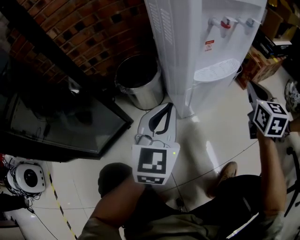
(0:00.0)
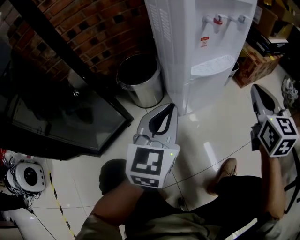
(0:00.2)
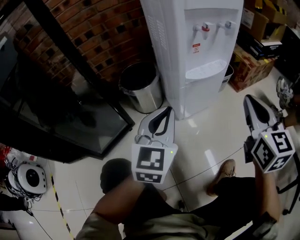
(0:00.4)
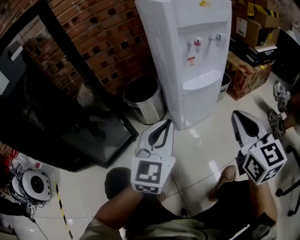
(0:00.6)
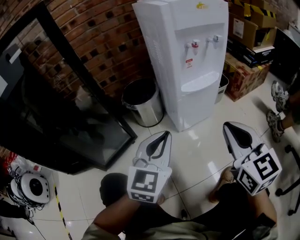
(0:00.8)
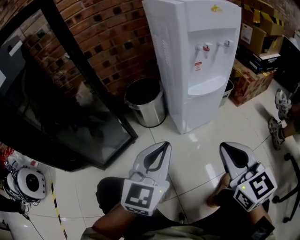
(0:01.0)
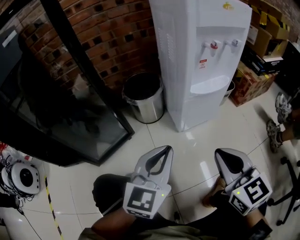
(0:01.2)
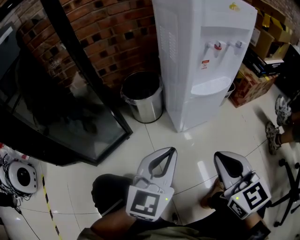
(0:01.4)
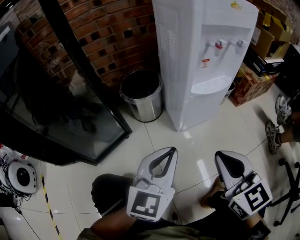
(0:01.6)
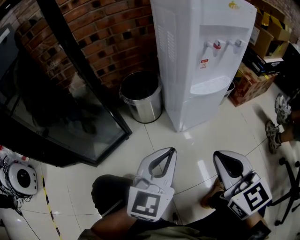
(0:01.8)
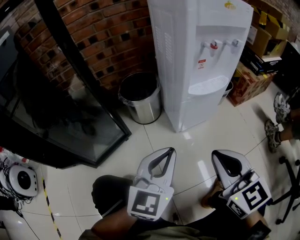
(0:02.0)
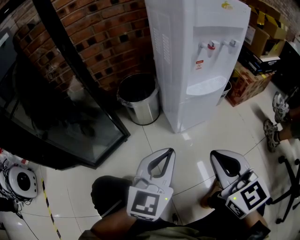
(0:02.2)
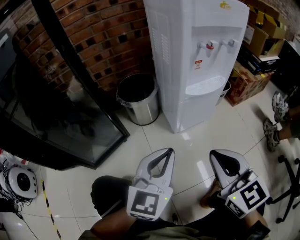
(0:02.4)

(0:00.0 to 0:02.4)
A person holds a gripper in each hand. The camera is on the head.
0:00.0 - 0:01.2: The left gripper is displaced backward by roughly 15 cm, while the right gripper shifts roughly 30 cm backward and to the left, and rotates approximately 30 degrees.
0:01.2 - 0:02.4: The grippers stay close to where they were, moving slightly.

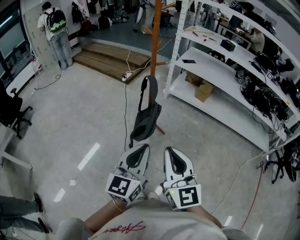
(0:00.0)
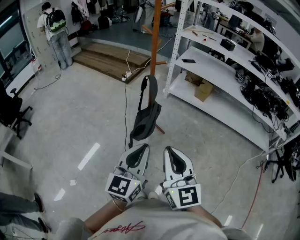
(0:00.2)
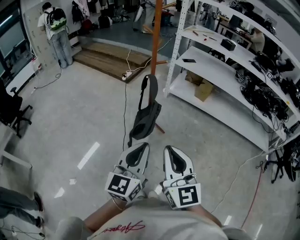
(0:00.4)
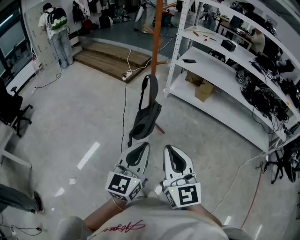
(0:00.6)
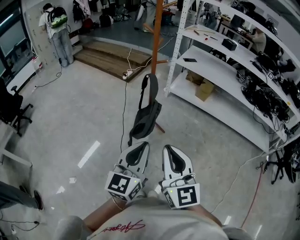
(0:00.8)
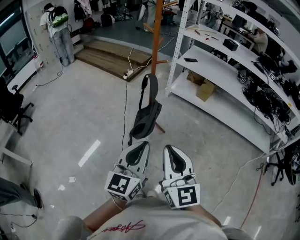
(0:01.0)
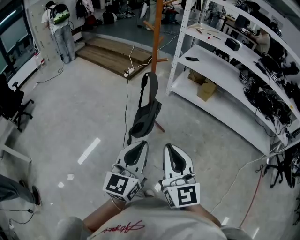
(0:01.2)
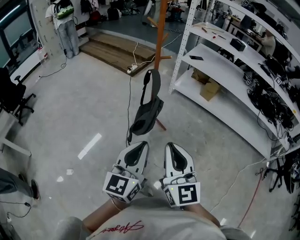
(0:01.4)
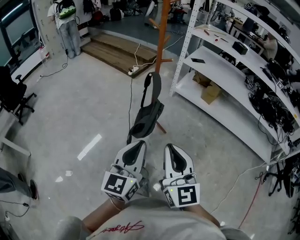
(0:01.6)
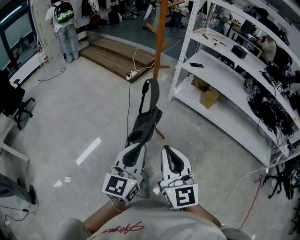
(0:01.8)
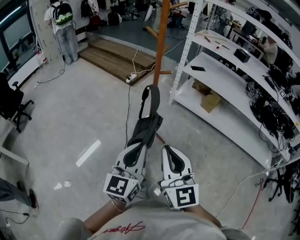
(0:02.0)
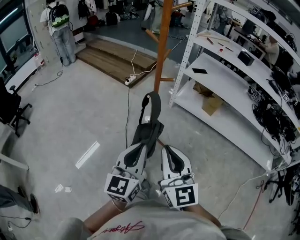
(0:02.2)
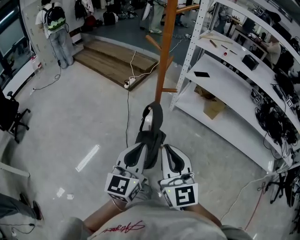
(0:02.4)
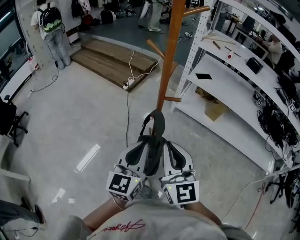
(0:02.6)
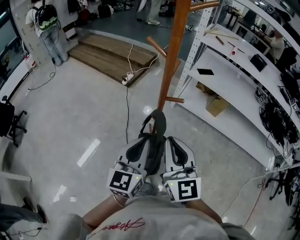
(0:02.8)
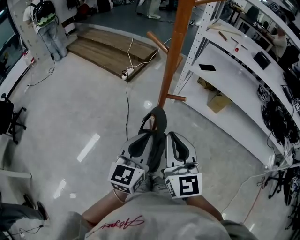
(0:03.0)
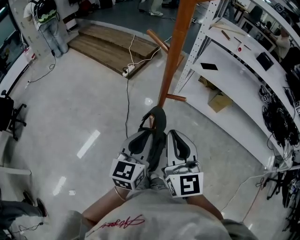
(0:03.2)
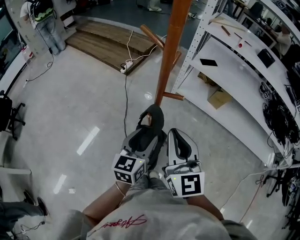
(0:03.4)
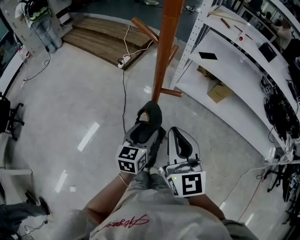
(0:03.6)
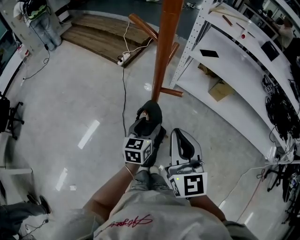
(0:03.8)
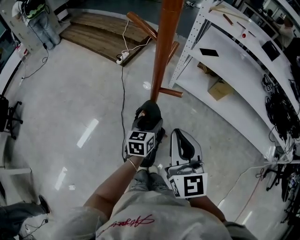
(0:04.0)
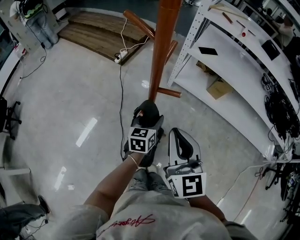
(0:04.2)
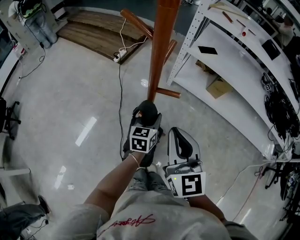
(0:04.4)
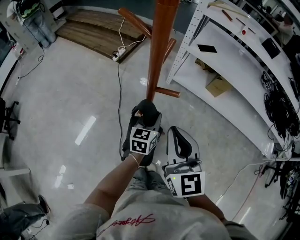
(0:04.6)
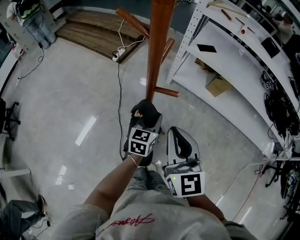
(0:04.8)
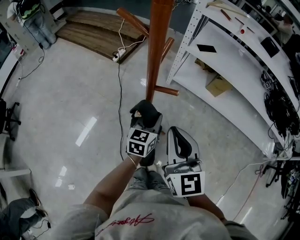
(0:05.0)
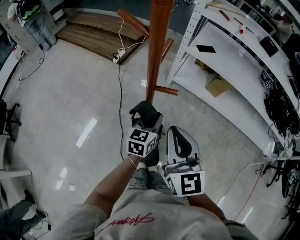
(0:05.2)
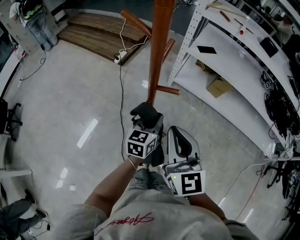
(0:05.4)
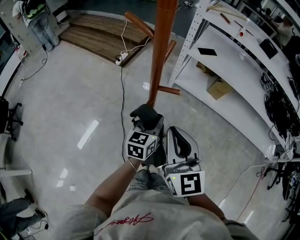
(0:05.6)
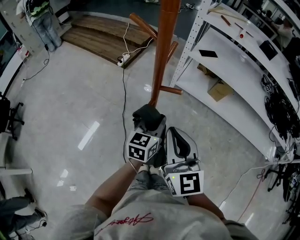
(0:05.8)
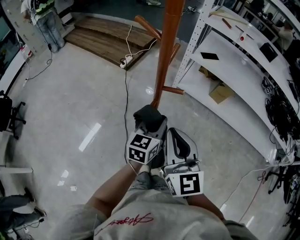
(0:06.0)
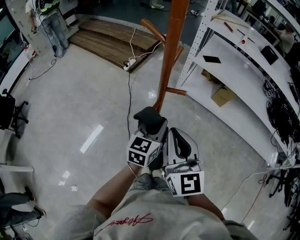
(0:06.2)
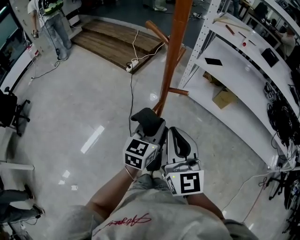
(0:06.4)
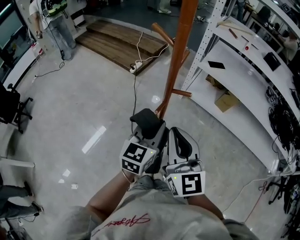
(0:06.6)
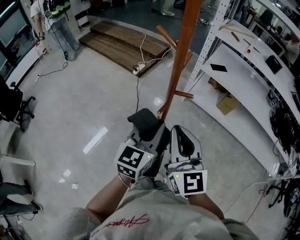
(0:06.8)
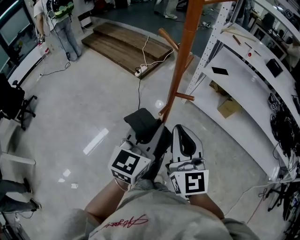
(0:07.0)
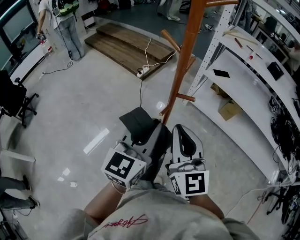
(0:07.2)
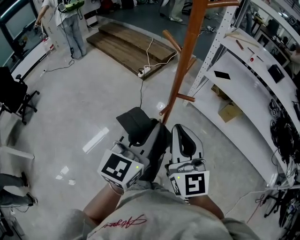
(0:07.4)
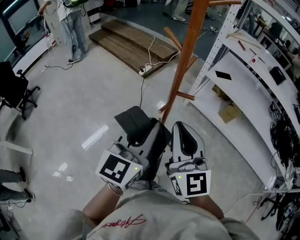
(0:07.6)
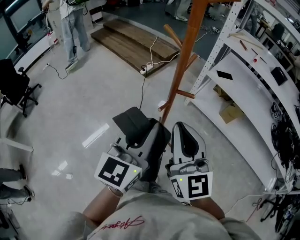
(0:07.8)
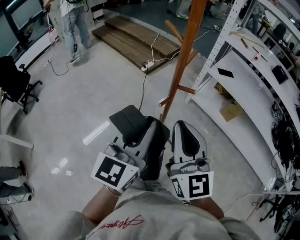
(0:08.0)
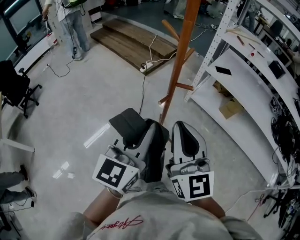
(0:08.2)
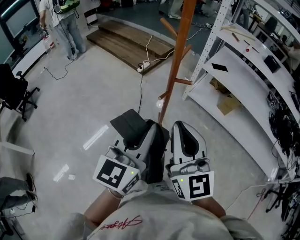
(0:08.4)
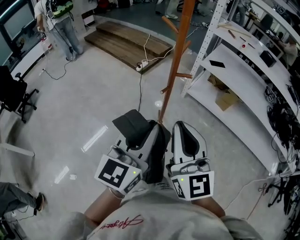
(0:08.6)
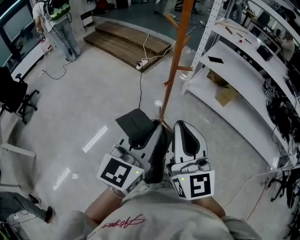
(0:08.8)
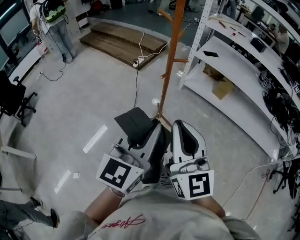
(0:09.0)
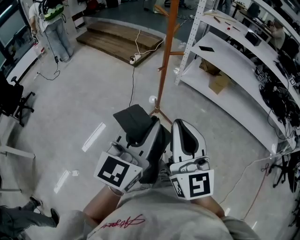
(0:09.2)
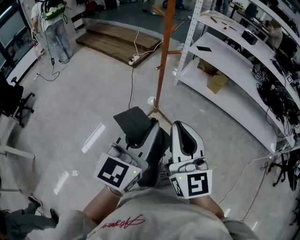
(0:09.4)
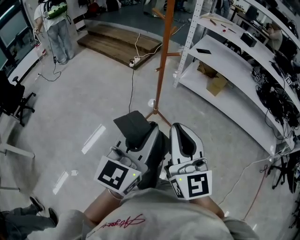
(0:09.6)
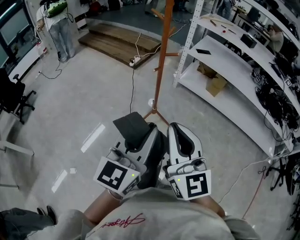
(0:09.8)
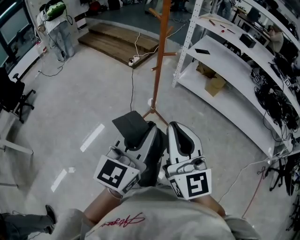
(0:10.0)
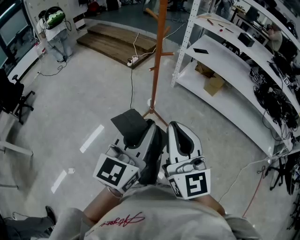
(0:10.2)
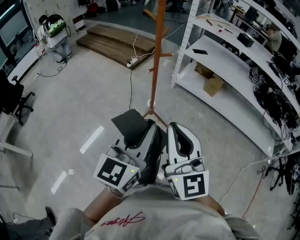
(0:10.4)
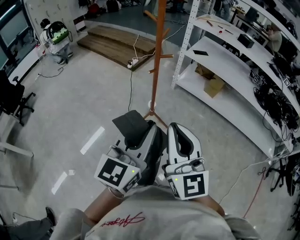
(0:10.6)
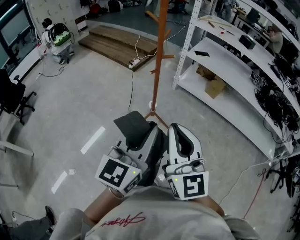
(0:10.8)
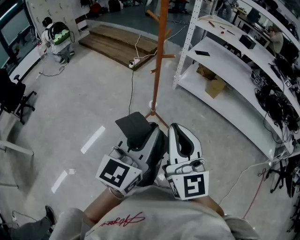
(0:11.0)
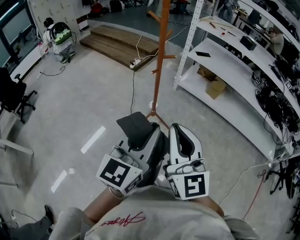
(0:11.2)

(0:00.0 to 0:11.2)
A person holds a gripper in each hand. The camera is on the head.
0:00.0 - 0:01.6: The grippers stay close to where they were, moving slightly.
0:01.6 - 0:03.2: Both grippers travel together forward, roughly 35 cm.
0:03.2 - 0:04.8: The left gripper goes about 20 cm downward, forward and to the right, and opens, then closes again. The right gripper changes place by about 5 cm.
0:04.8 - 0:06.4: The left gripper goes about 15 cm upward and backward. Meanwhile the right gripper changes place by roughly 5 cm.
0:06.4 - 0:08.0: The right gripper heads upward, covering roughly 5 cm. The left gripper shifts roughly 20 cm upward and backward, and rotates roughly 20 degrees.
0:08.0 - 0:09.6: Both grippers move backward, approximately 25 cm.
0:09.6 - 0:11.2: The grippers make only small movements.

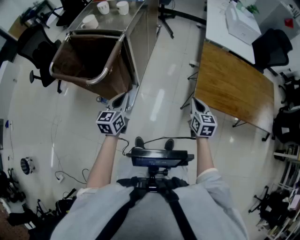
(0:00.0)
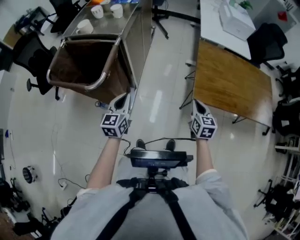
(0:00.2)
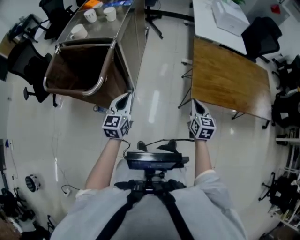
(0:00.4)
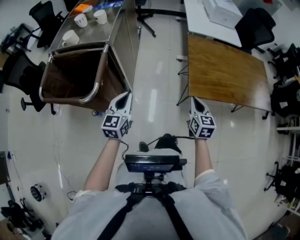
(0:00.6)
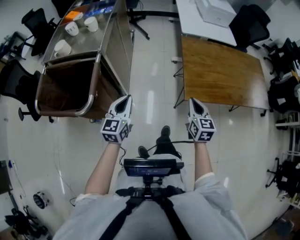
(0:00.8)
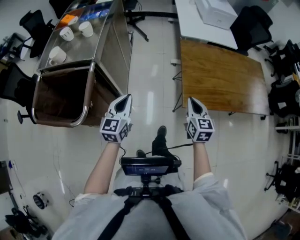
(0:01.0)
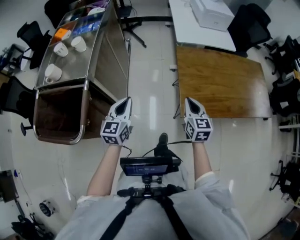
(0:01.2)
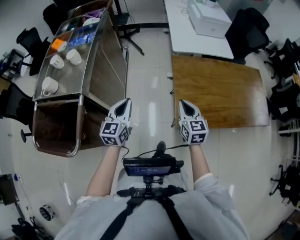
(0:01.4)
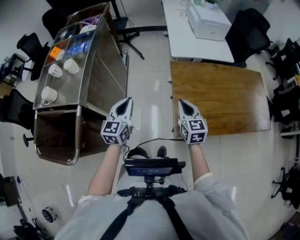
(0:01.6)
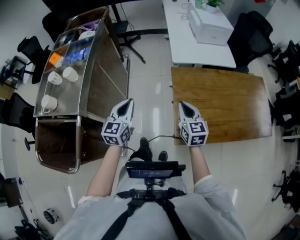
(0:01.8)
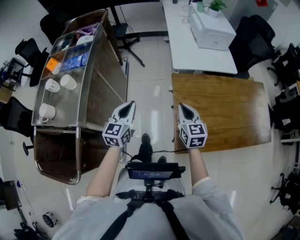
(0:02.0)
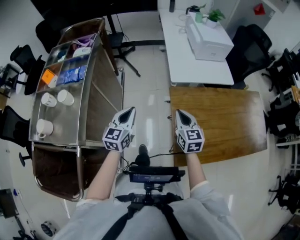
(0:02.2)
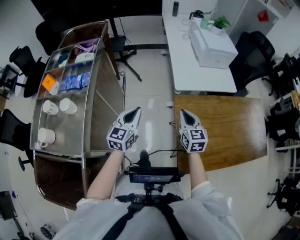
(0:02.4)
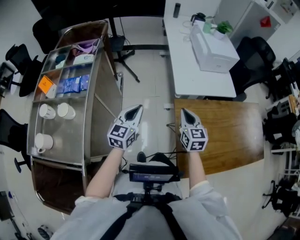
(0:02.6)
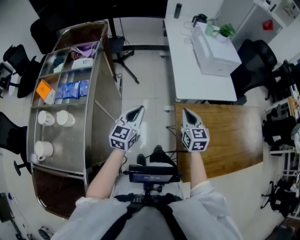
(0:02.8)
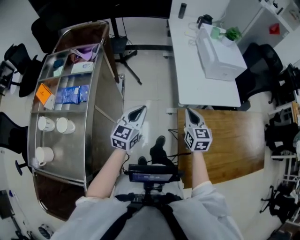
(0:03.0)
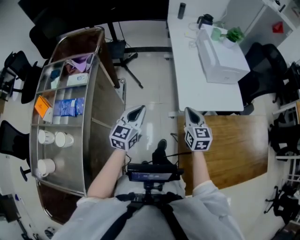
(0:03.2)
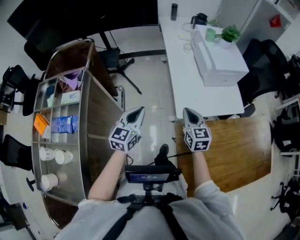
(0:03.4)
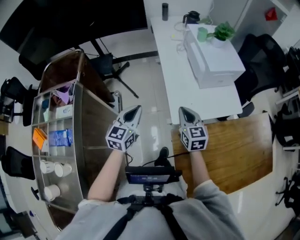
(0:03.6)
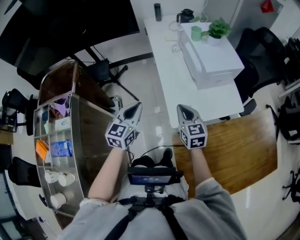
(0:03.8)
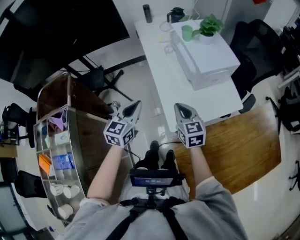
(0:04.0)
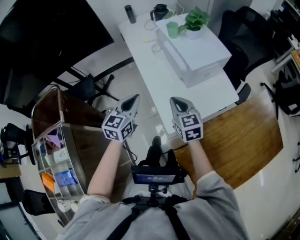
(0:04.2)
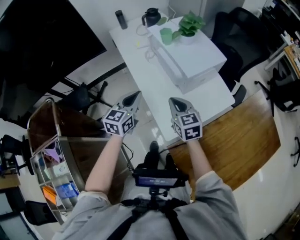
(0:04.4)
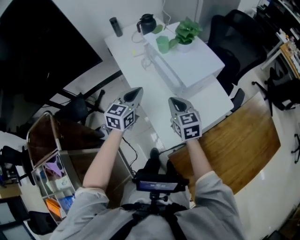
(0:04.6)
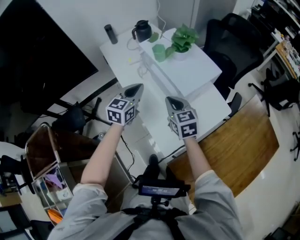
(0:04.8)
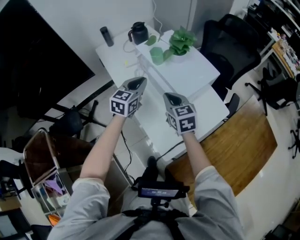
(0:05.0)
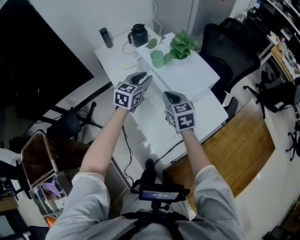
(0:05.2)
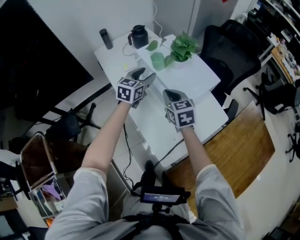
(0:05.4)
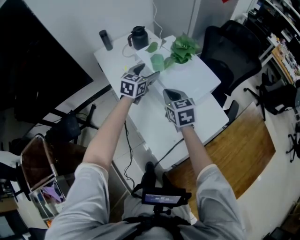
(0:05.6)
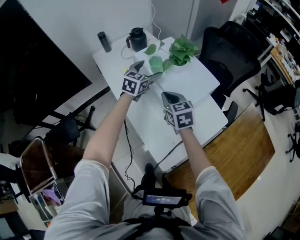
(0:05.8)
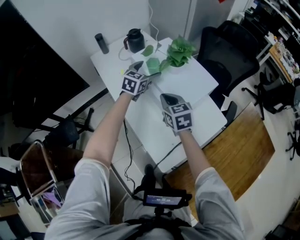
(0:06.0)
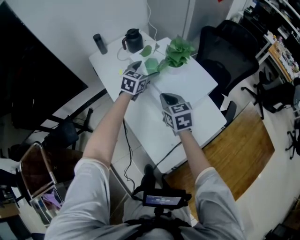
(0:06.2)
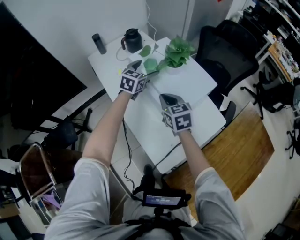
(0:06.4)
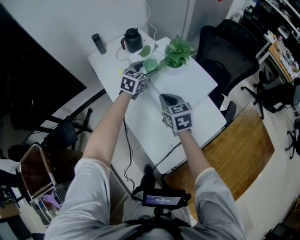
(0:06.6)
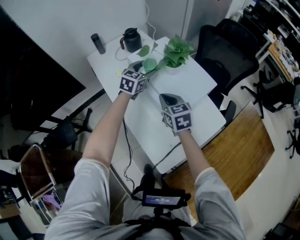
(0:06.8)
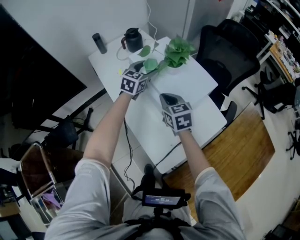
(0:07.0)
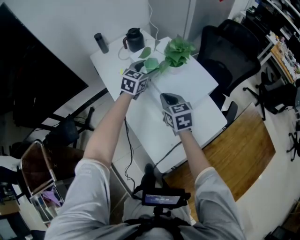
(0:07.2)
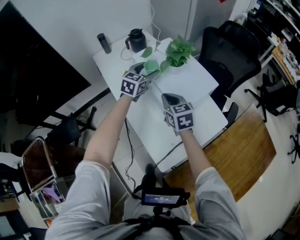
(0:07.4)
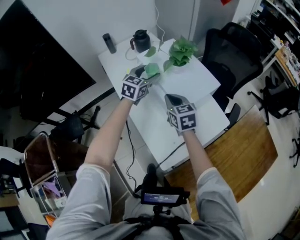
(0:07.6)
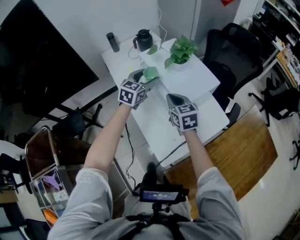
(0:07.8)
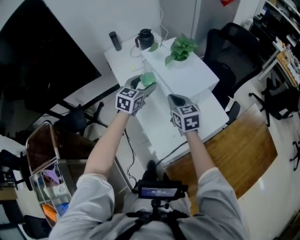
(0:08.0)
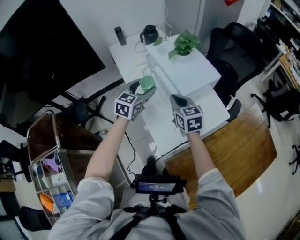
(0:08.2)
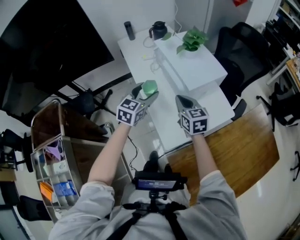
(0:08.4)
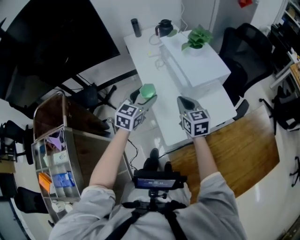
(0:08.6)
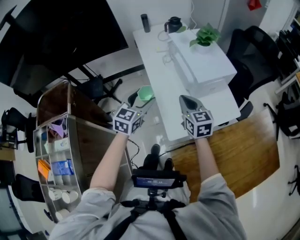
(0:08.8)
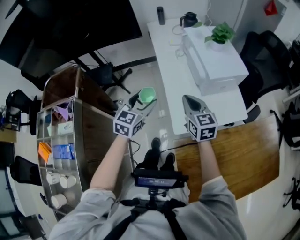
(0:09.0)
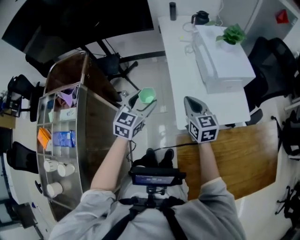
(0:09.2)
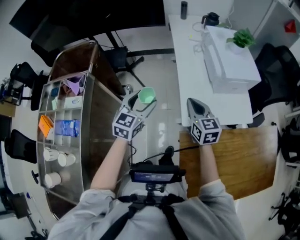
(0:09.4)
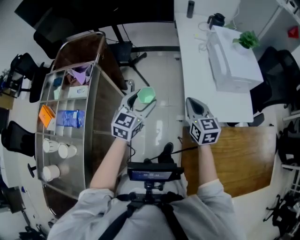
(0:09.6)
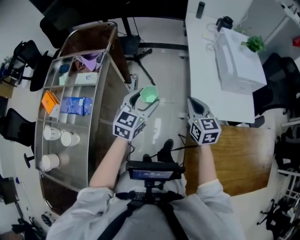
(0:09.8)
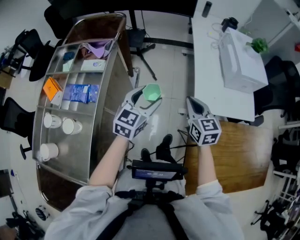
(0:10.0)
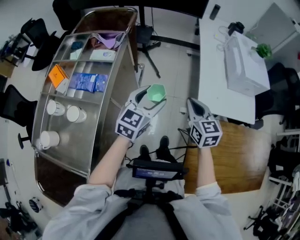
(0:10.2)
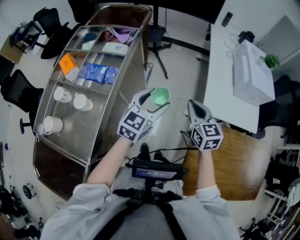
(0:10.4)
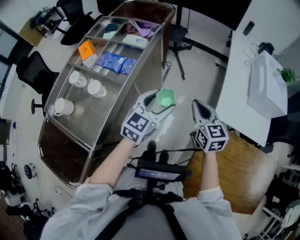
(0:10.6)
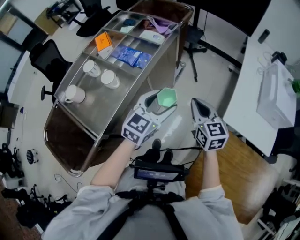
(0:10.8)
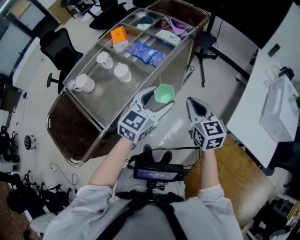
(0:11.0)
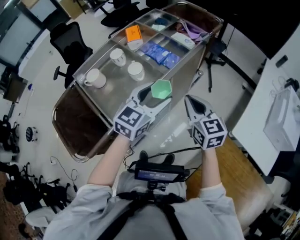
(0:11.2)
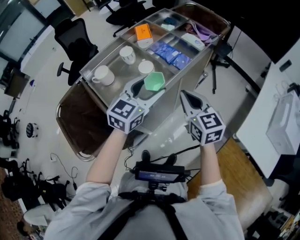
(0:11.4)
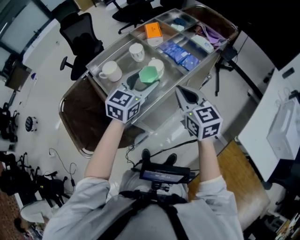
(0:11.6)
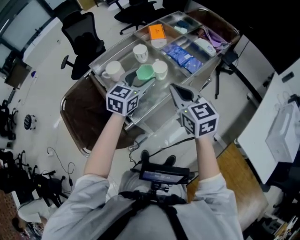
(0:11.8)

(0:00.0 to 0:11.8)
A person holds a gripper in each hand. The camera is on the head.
0:00.0 - 0:01.4: The right gripper goes approximately 20 cm forward. The left gripper heads forward and to the right, covering approximately 30 cm.
0:01.4 - 0:03.0: Both grippers travel together forward, some 40 cm.
0:03.0 - 0:04.4: Both grippers move forward, roughly 40 cm. The left gripper changes its angle by approximately 20 degrees.
0:04.4 - 0:06.0: The left gripper moves forward, about 35 cm, and opens. The right gripper travels forward by some 20 cm.
0:06.0 - 0:07.4: The grippers make only small movements.
0:07.4 - 0:08.8: The left gripper goes roughly 40 cm backward, and swivels approximately 20 degrees. Meanwhile the right gripper is displaced backward by roughly 20 cm.
0:08.8 - 0:10.4: The left gripper goes some 40 cm backward and to the left, and changes its angle by roughly 20 degrees. Meanwhile the right gripper travels to the left and backward by approximately 40 cm, and changes its angle by about 30 degrees.
0:10.4 - 0:11.8: The right gripper moves about 40 cm, and swivels some 50 degrees; the left gripper ends up about 40 cm from where it was, and swivels about 40 degrees.
